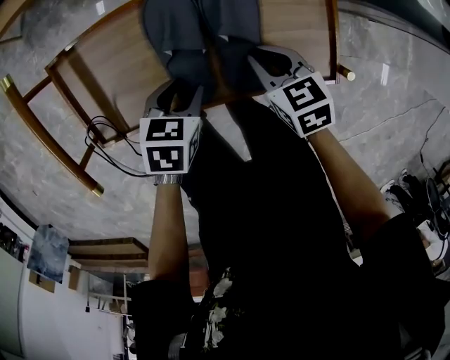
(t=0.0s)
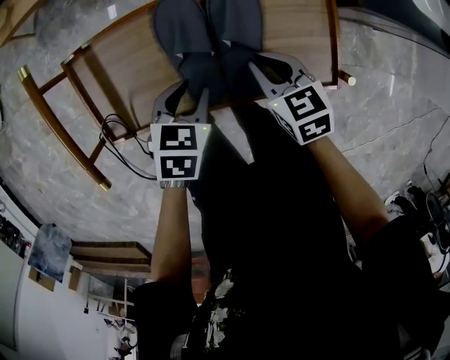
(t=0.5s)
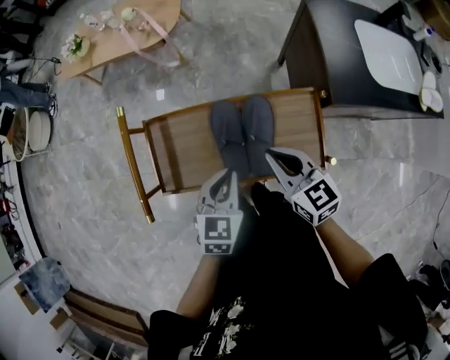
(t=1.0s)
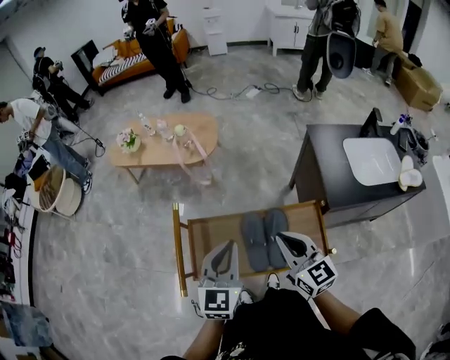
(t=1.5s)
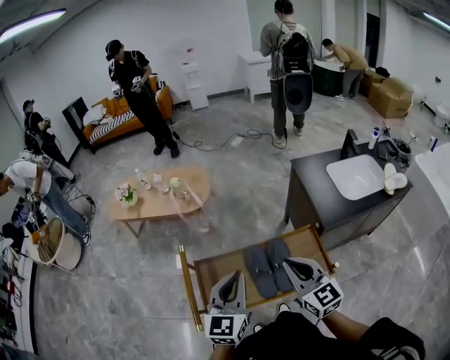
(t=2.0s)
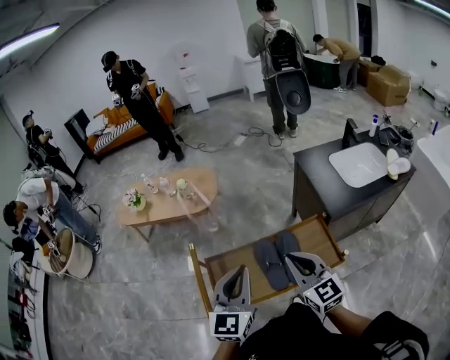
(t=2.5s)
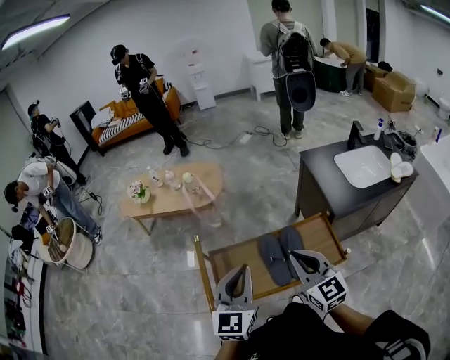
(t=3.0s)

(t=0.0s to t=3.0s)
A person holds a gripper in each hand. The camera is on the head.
t=0.0s - t=1.5s: The grippers both shift upward by about 35 cm. The right gripper angles its fingers upward, by some 40 degrees; the left gripper points its fingers roughly 50 degrees further upward, and closes.
t=1.5s - t=3.0s: The two grippers go roughly 5 cm backward.

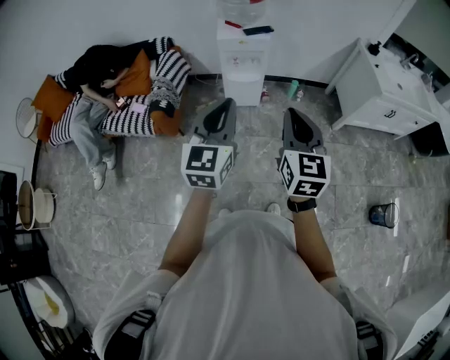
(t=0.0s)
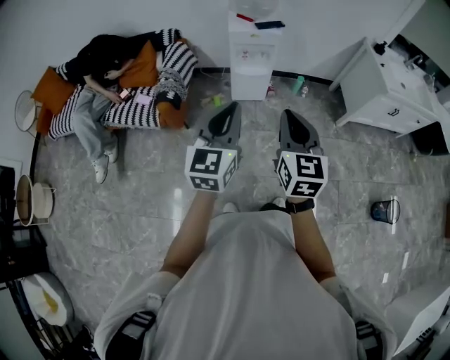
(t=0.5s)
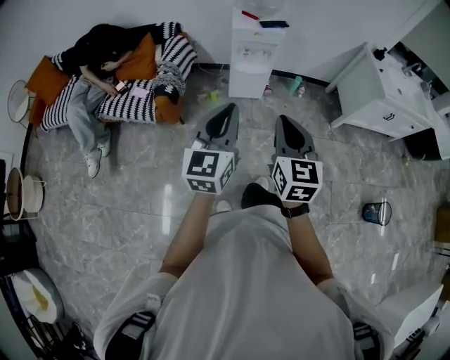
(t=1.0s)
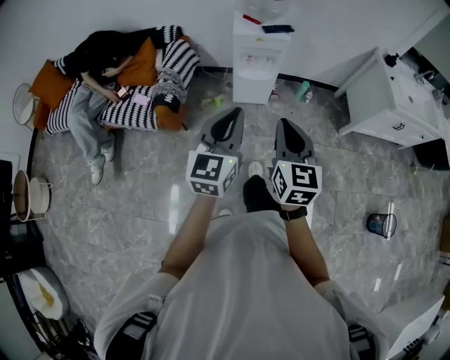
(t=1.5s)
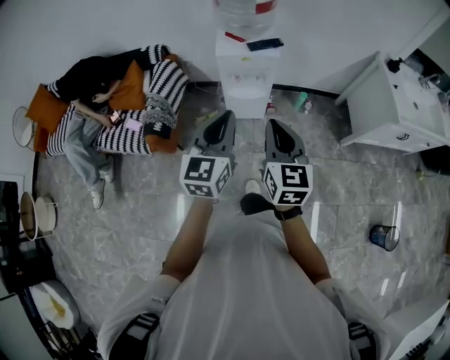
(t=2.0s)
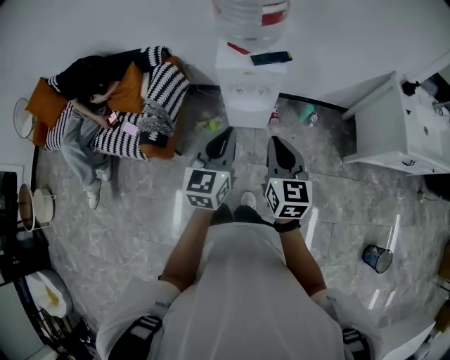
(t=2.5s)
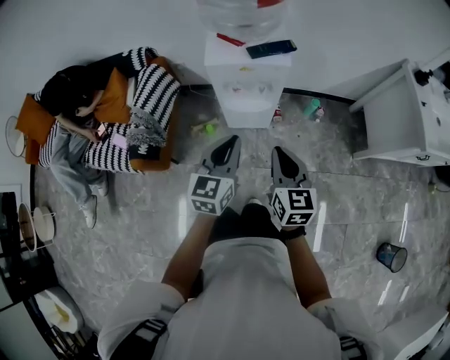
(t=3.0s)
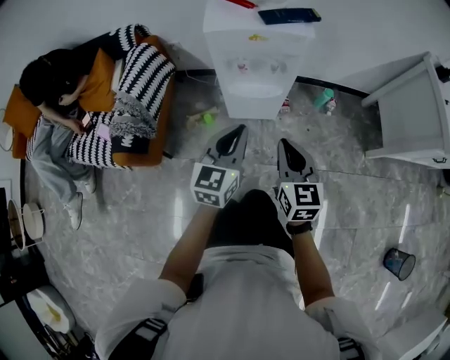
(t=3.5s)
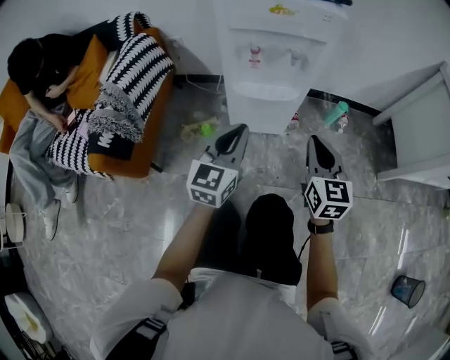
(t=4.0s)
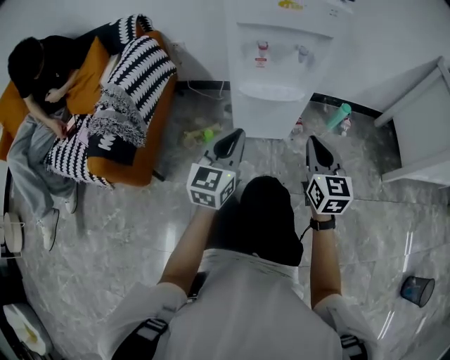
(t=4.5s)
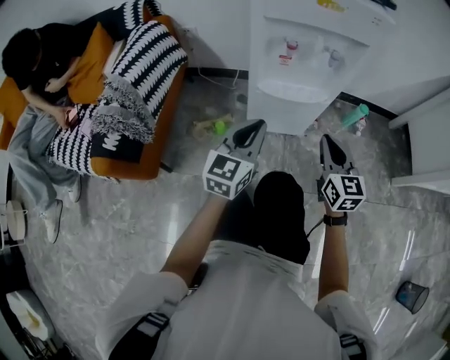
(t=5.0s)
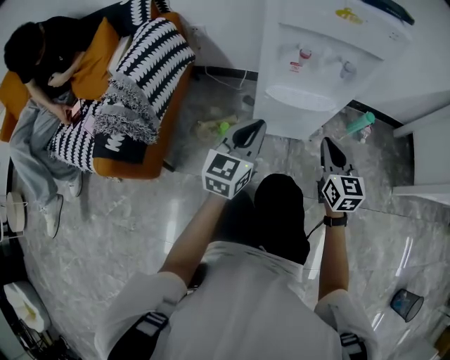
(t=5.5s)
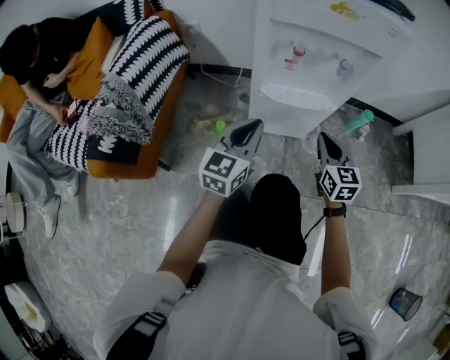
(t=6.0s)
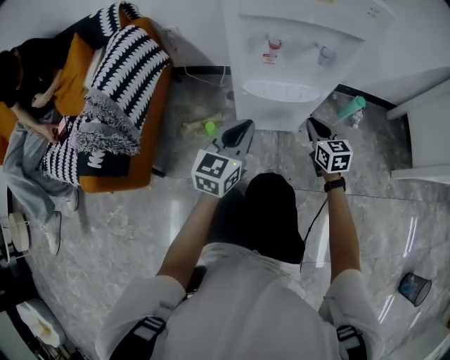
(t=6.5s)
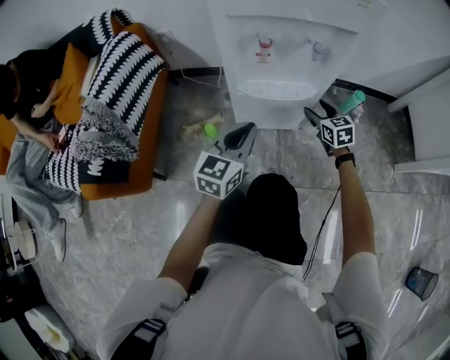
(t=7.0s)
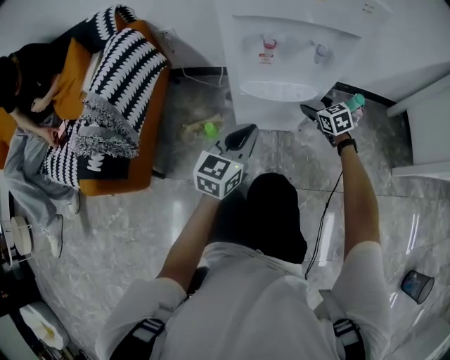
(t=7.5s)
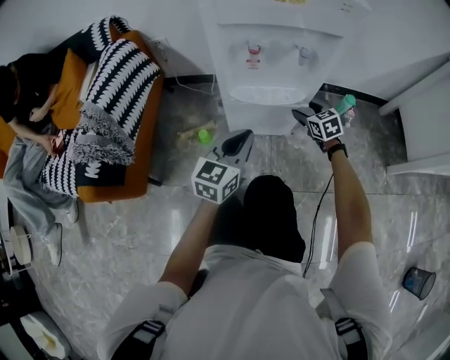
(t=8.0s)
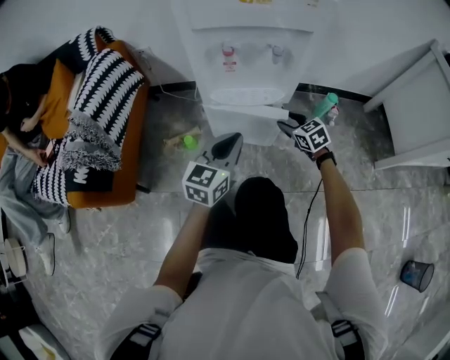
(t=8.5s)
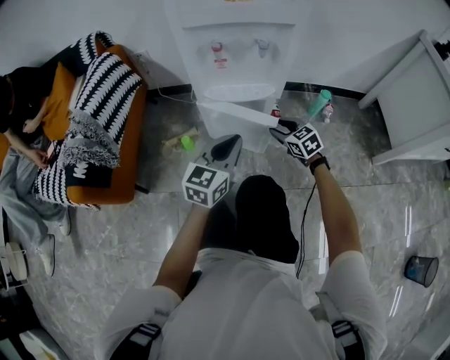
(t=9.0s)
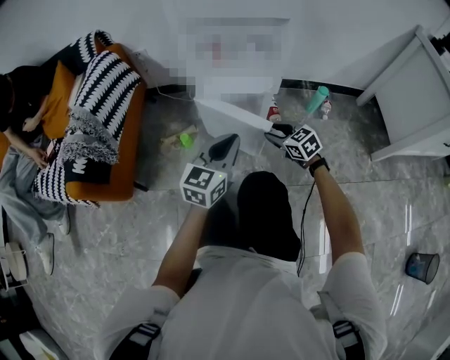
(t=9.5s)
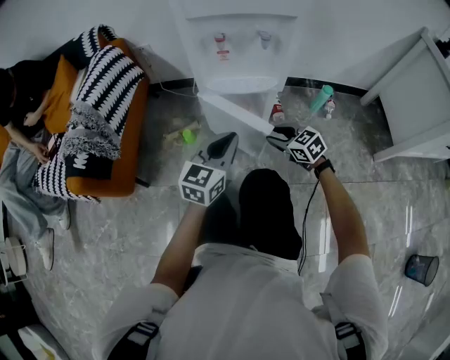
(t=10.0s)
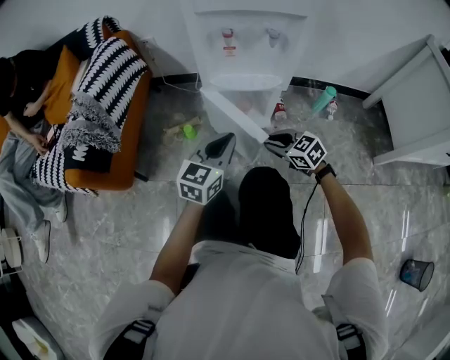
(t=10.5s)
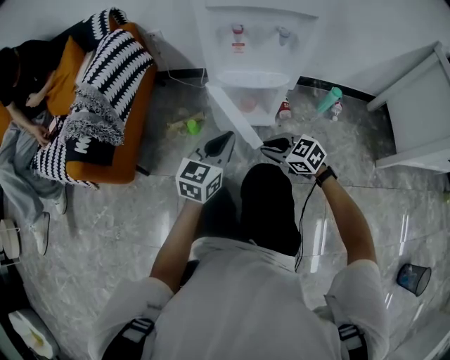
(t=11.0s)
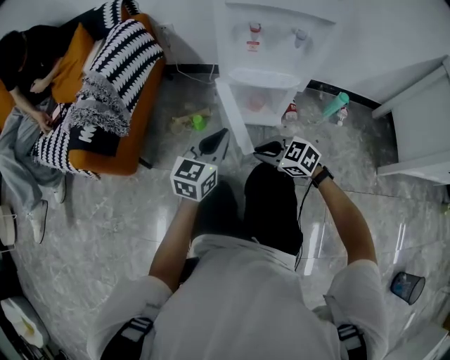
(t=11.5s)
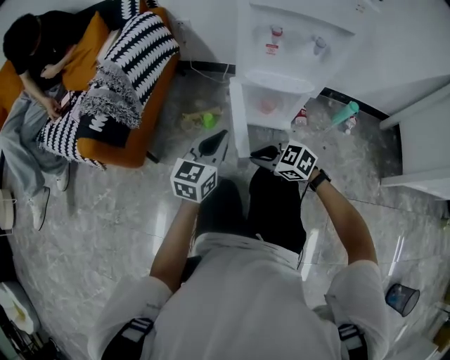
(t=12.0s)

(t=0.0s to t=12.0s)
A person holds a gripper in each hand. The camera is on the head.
t=0.0s - t=2.0s: Both grippers move forward, some 20 cm.
t=2.0s - t=4.0s: Both grippers travel together downward and forward, some 50 cm.
t=4.0s - t=6.0s: The left gripper heads downward, forward and to the left, covering approximately 15 cm; the right gripper travels downward and forward by some 15 cm.
t=6.0s - t=8.0s: The left gripper travels to the right by approximately 5 cm, while the right gripper travels forward and downward by approximately 15 cm, changes its angle by roughly 20 degrees, and opens its fingers.
t=8.0s - t=10.0s: The right gripper goes some 15 cm backward, and closes up. The left gripper travels backward by some 5 cm.
t=10.0s - t=12.0s: The right gripper travels to the left by approximately 20 cm, turns by some 30 degrees, and closes its fingers; the left gripper moves to the left, some 10 cm.

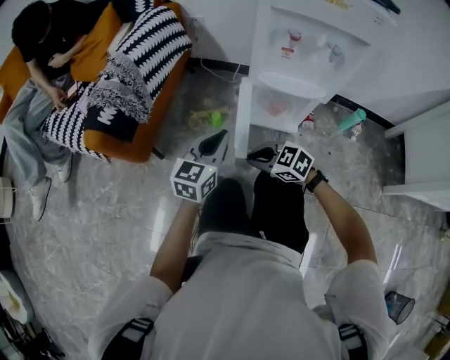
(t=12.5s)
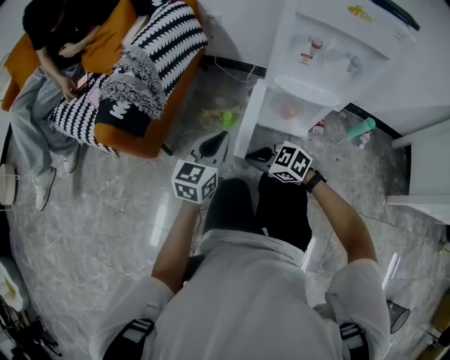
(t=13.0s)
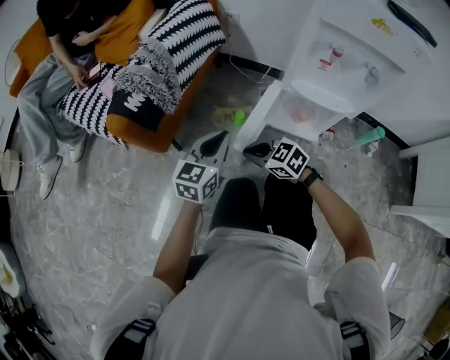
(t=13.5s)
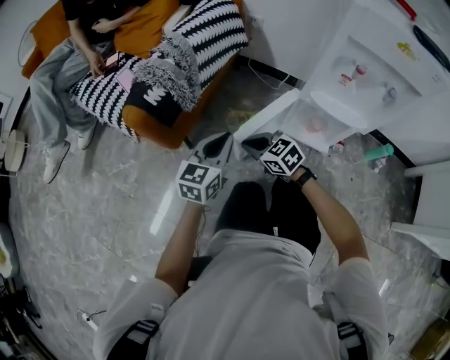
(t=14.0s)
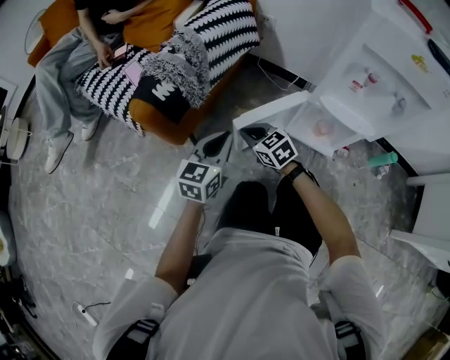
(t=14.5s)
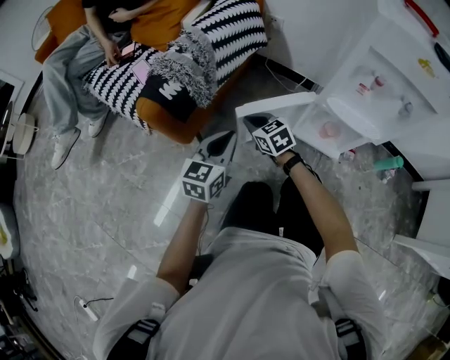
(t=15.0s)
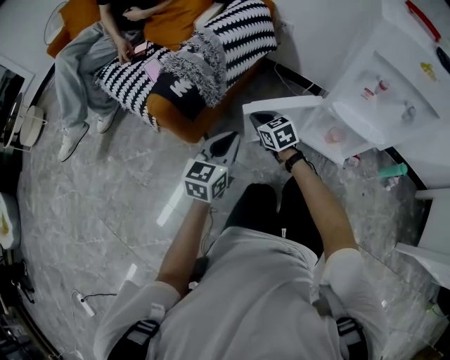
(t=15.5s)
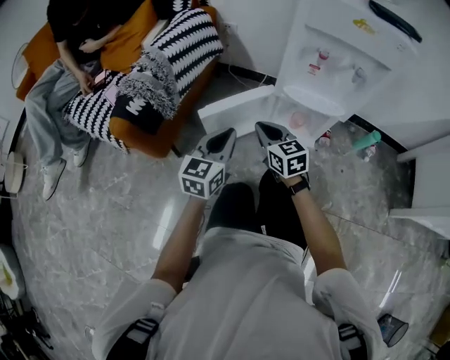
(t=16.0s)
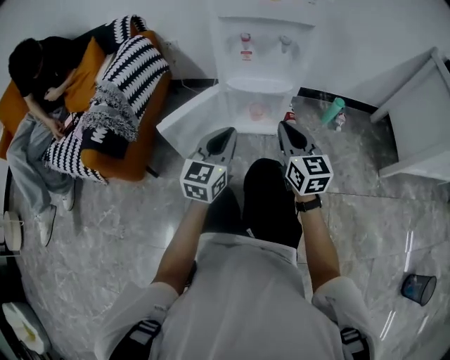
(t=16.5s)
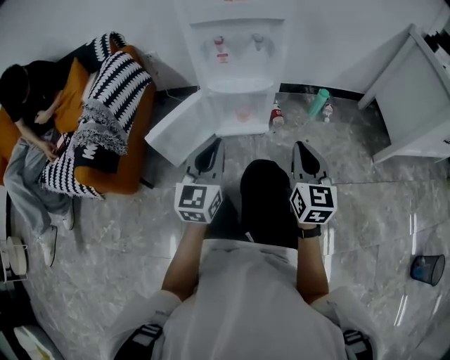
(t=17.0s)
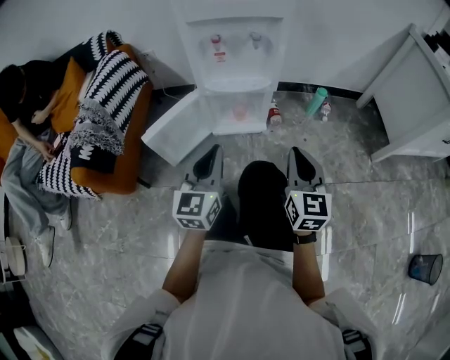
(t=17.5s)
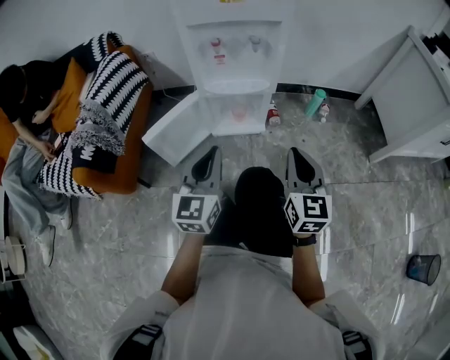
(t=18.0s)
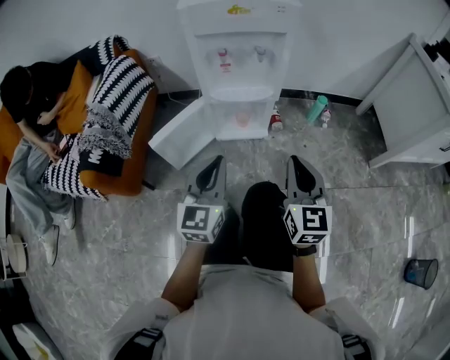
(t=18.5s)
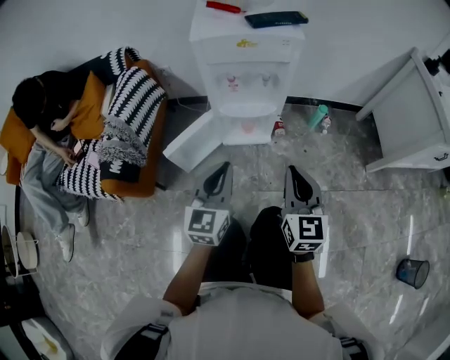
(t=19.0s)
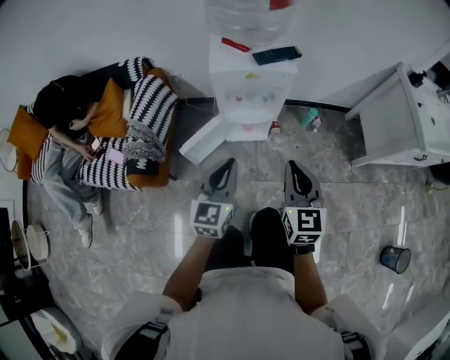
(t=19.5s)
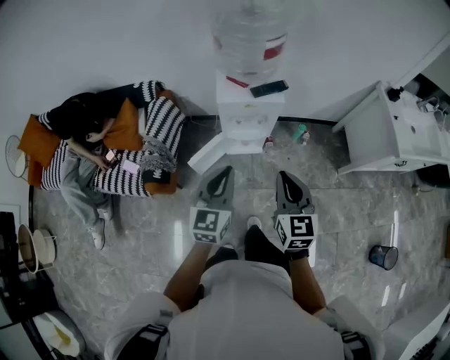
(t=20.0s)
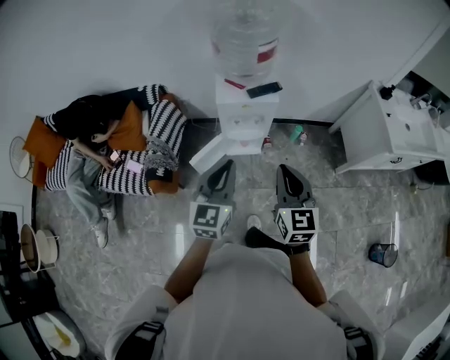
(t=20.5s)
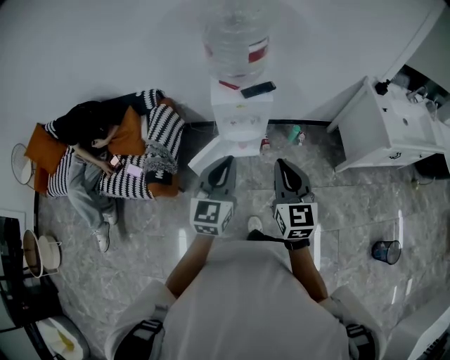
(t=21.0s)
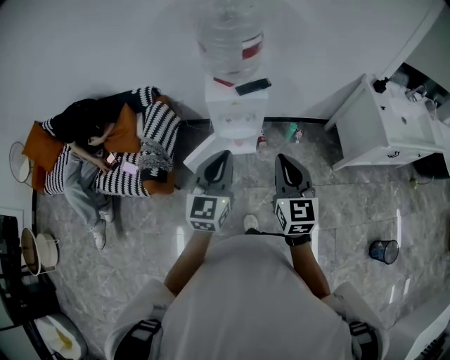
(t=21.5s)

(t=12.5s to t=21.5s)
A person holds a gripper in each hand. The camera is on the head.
t=12.5s - t=14.5s: The left gripper travels to the left and forward by roughly 15 cm, while the right gripper heads forward and to the left, covering about 20 cm.
t=14.5s - t=17.0s: The right gripper moves approximately 50 cm, and turns by some 80 degrees, while the left gripper moves some 25 cm, and turns by roughly 20 degrees.
t=17.0s - t=19.5s: Both grippers travel together upward, some 30 cm.
t=19.5s - t=21.5s: Both grippers move upward, about 25 cm.

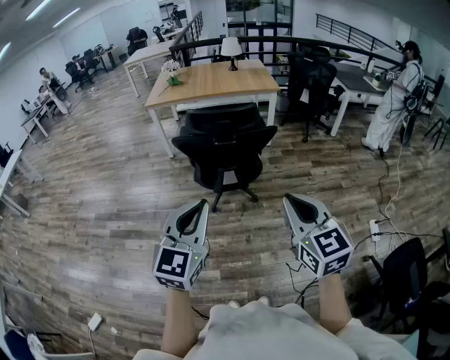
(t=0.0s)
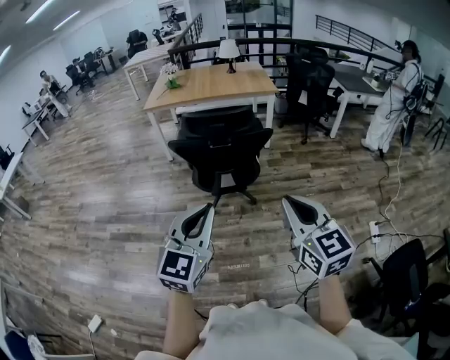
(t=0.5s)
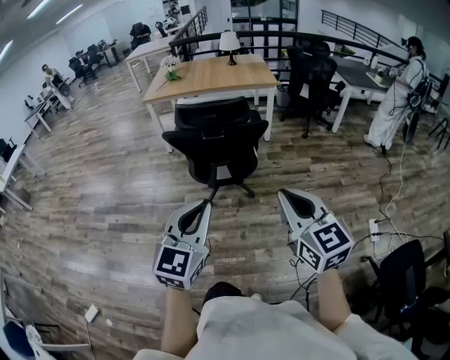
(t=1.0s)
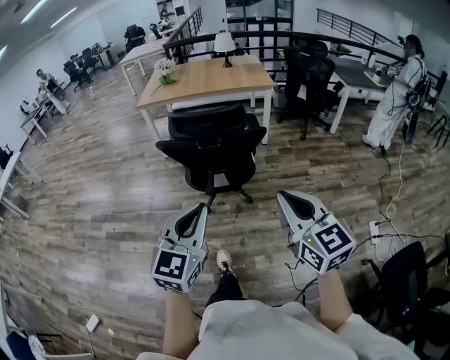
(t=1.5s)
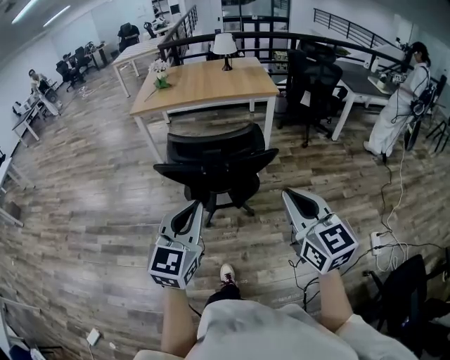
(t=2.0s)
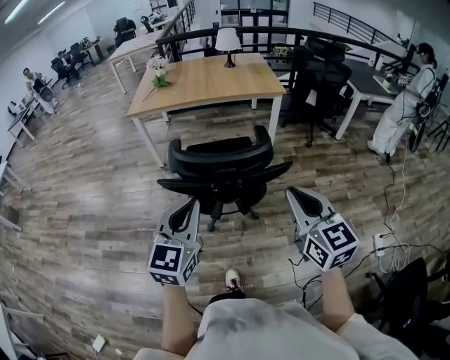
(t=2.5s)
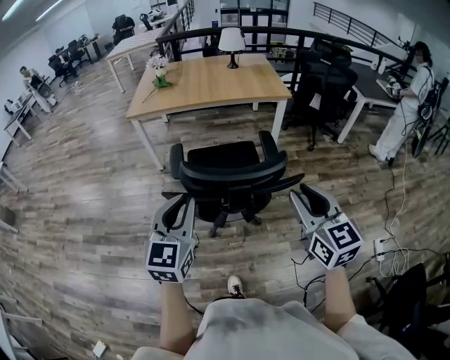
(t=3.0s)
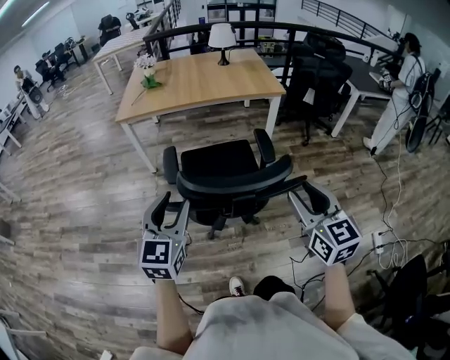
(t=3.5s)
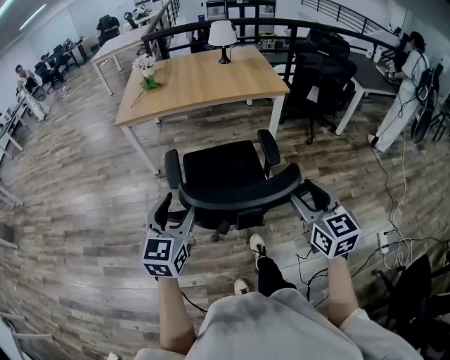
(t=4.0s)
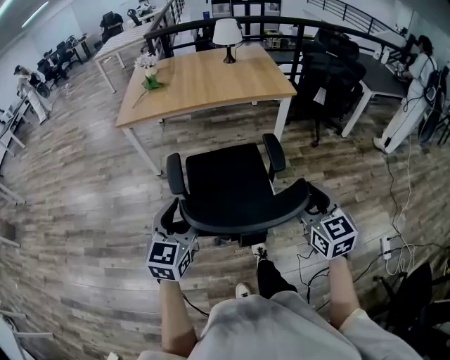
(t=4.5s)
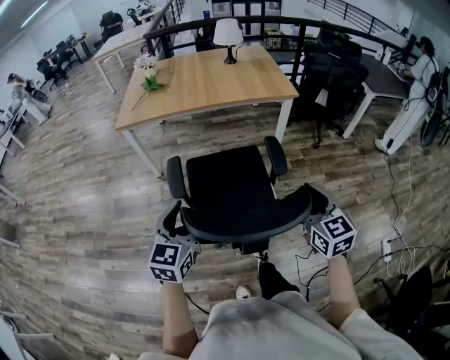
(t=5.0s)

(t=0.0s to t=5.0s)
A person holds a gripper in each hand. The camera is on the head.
t=0.0s - t=2.5s: Both grippers travel together forward, roughly 30 cm.
t=2.5s - t=5.0s: Both grippers move forward and downward, some 25 cm. The right gripper opens. Meanwhile the left gripper opens up.
